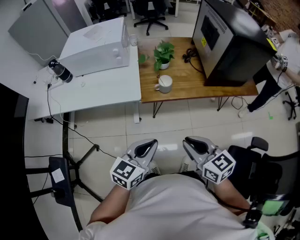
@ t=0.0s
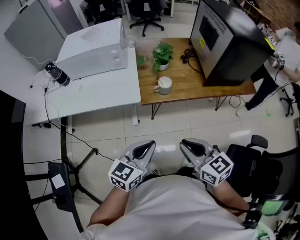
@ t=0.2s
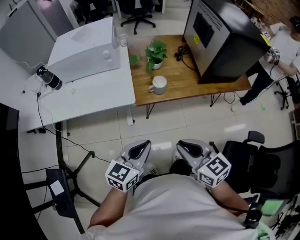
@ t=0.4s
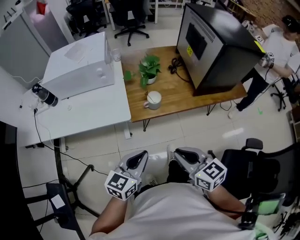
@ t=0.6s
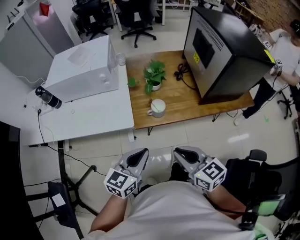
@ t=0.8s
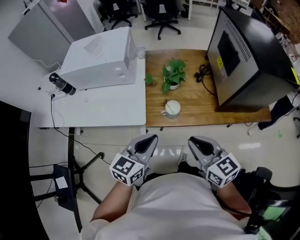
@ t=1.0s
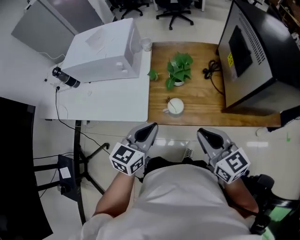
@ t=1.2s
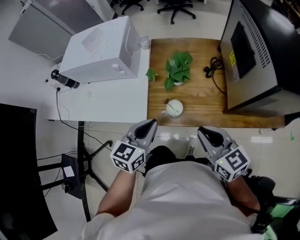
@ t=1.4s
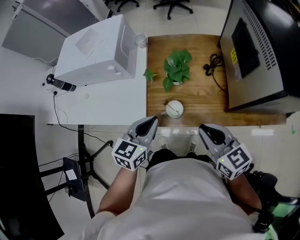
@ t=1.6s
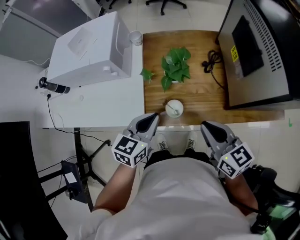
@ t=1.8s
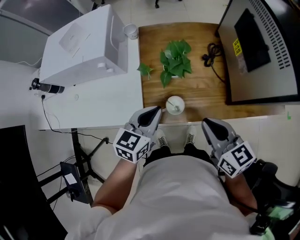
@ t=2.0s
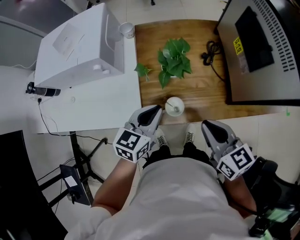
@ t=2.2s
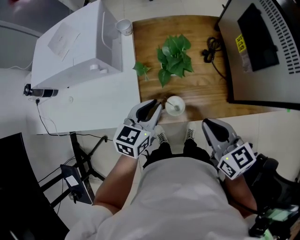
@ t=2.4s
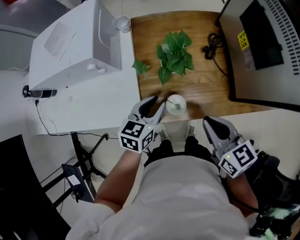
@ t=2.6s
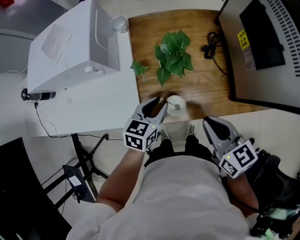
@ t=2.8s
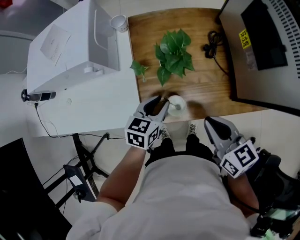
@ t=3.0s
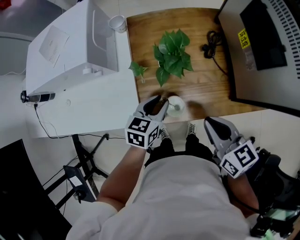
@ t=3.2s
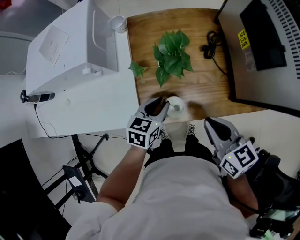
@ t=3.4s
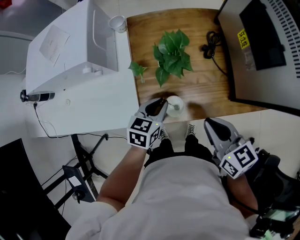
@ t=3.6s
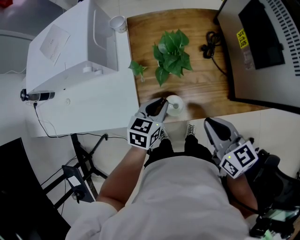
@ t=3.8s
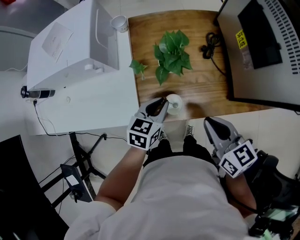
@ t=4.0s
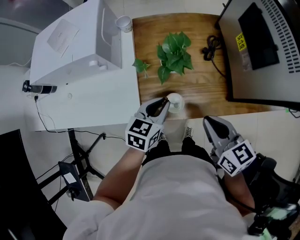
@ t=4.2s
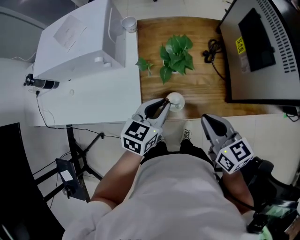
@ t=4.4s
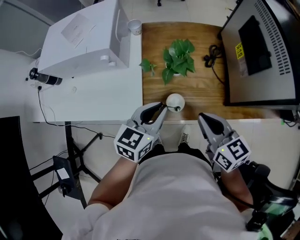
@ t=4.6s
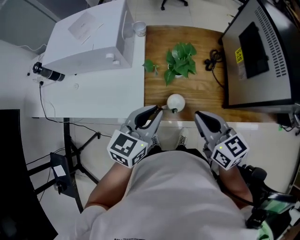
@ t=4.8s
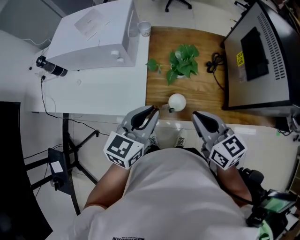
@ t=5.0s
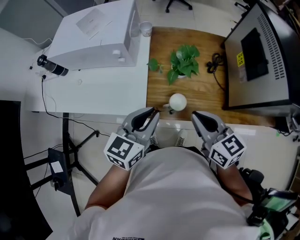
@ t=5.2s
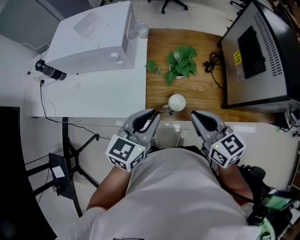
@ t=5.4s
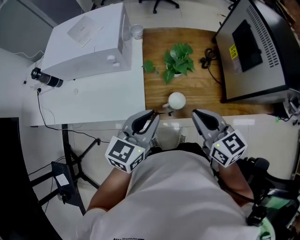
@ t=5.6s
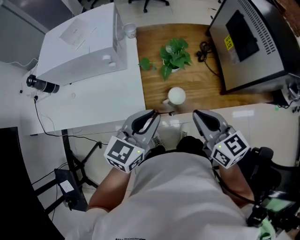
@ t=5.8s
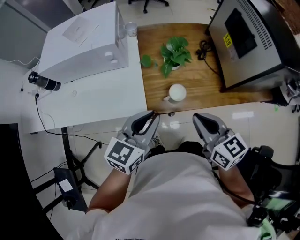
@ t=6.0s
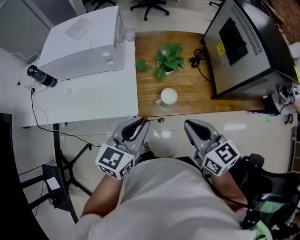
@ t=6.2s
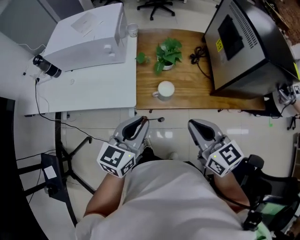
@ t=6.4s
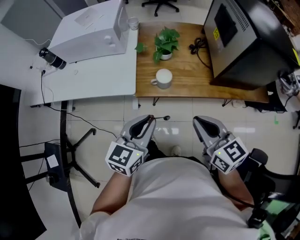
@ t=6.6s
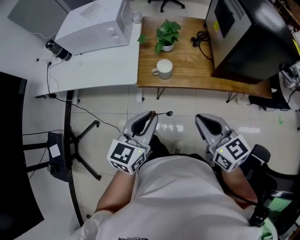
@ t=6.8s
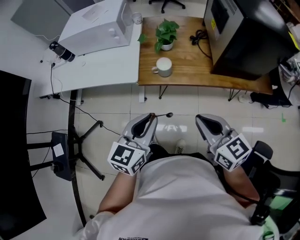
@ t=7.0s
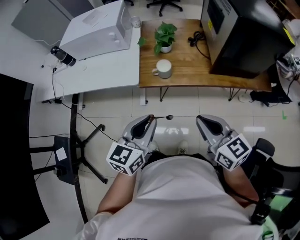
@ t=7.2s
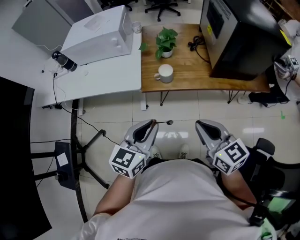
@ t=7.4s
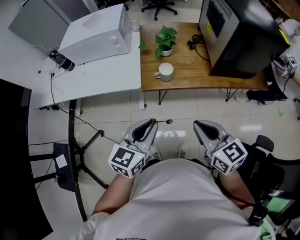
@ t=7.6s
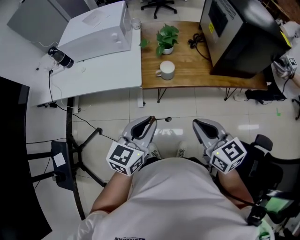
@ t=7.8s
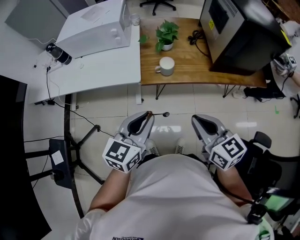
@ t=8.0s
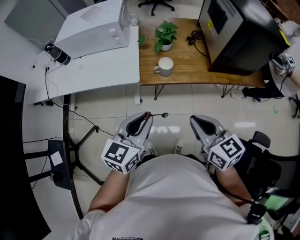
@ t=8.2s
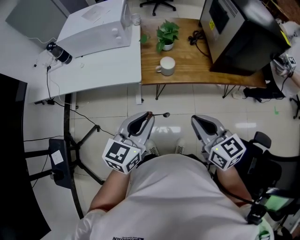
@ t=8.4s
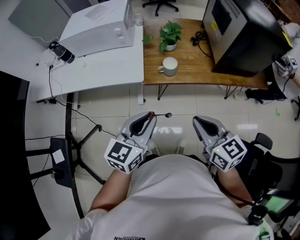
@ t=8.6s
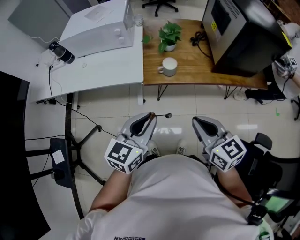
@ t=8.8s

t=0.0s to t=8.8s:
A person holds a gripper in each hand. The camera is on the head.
t=0.0s to t=1.4s: Both grippers travel together forward, about 30 cm.
t=1.4s to t=3.0s: The right gripper moves downward and forward, about 10 cm. The left gripper moves downward and forward, some 20 cm, and opens.
t=3.0s to t=4.4s: The left gripper travels upward by some 10 cm.
t=4.4s to t=5.8s: The left gripper heads upward, backward and to the left, covering about 15 cm, while the right gripper moves to the left and upward, about 10 cm.
t=5.8s to t=7.4s: Both grippers move backward, roughly 25 cm.
t=7.4s to t=8.8s: The right gripper heads to the left, covering about 5 cm.

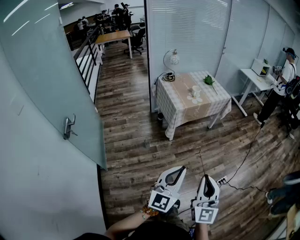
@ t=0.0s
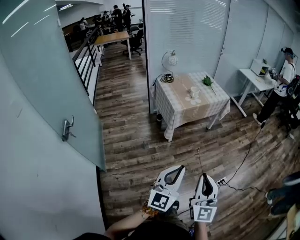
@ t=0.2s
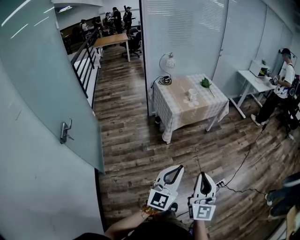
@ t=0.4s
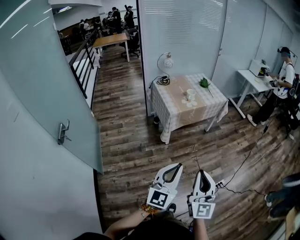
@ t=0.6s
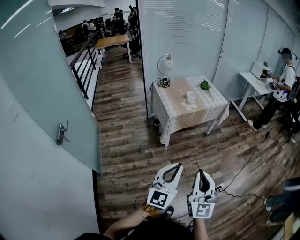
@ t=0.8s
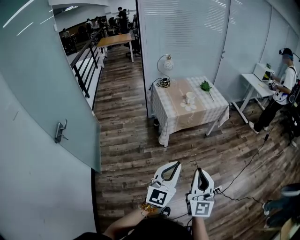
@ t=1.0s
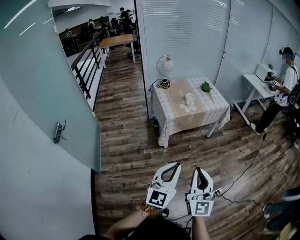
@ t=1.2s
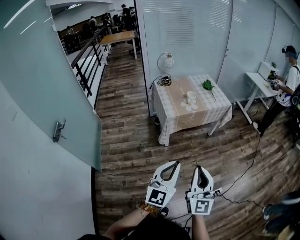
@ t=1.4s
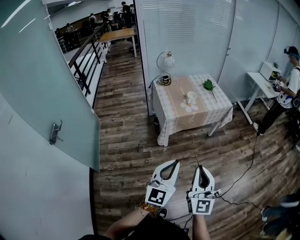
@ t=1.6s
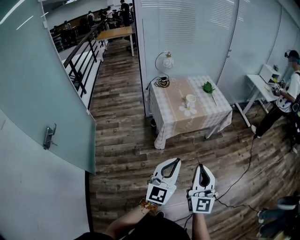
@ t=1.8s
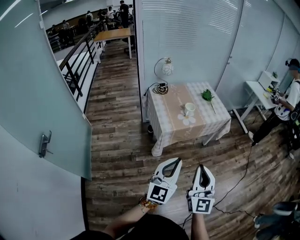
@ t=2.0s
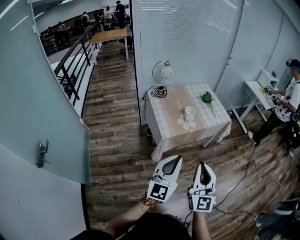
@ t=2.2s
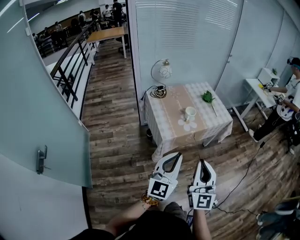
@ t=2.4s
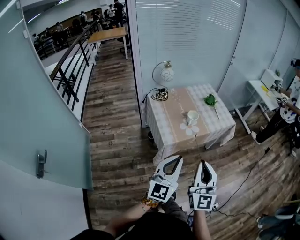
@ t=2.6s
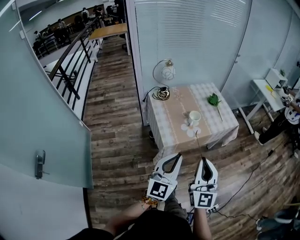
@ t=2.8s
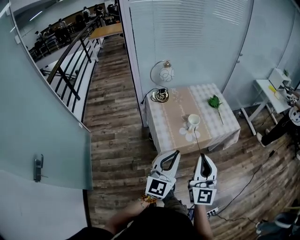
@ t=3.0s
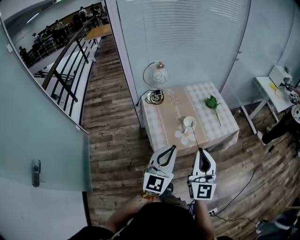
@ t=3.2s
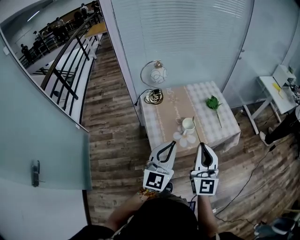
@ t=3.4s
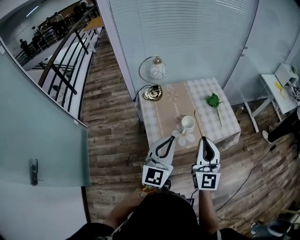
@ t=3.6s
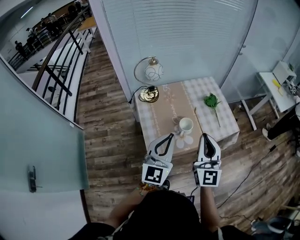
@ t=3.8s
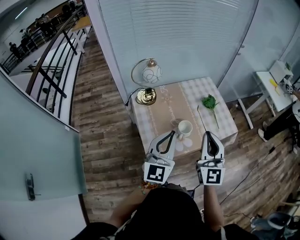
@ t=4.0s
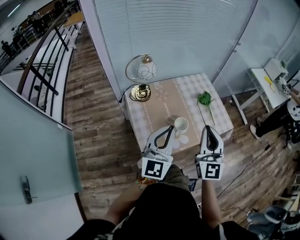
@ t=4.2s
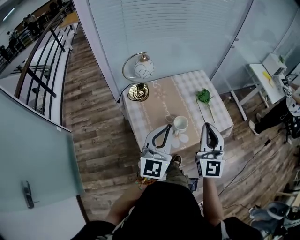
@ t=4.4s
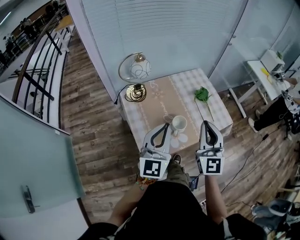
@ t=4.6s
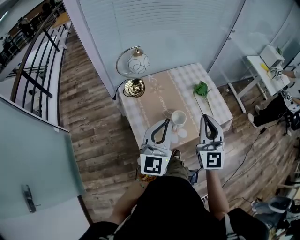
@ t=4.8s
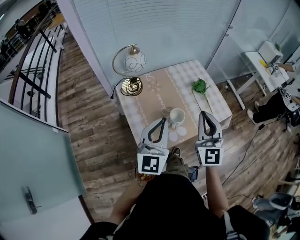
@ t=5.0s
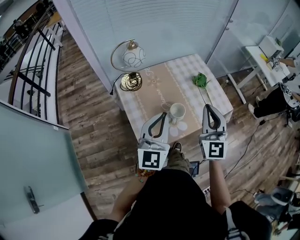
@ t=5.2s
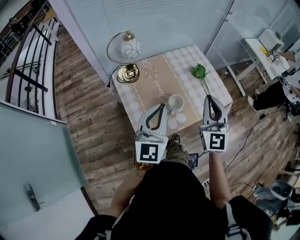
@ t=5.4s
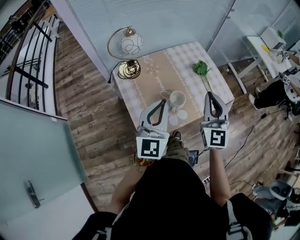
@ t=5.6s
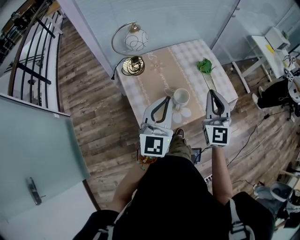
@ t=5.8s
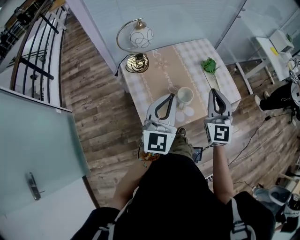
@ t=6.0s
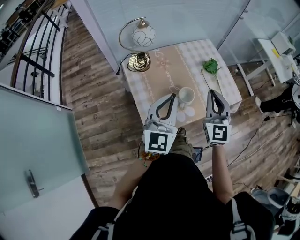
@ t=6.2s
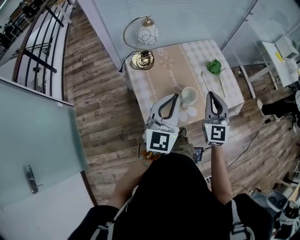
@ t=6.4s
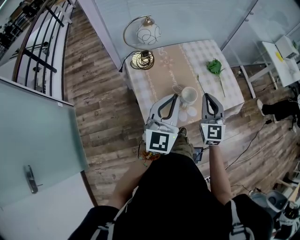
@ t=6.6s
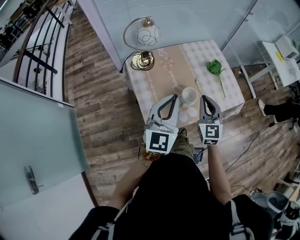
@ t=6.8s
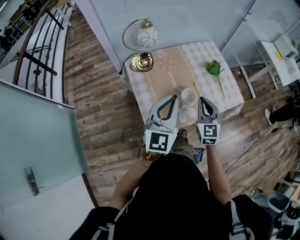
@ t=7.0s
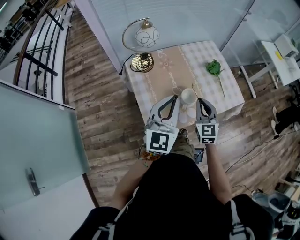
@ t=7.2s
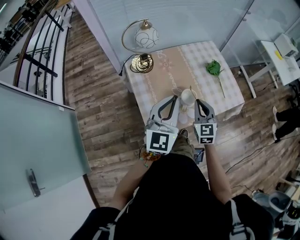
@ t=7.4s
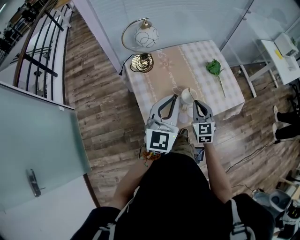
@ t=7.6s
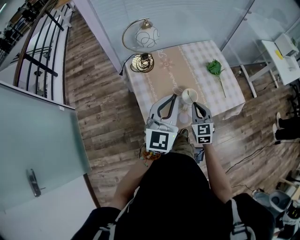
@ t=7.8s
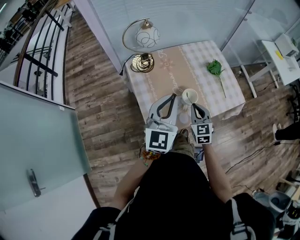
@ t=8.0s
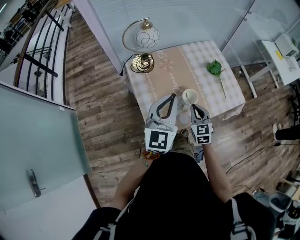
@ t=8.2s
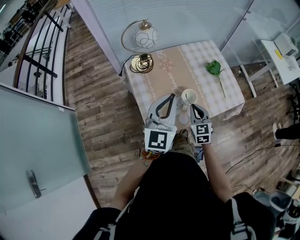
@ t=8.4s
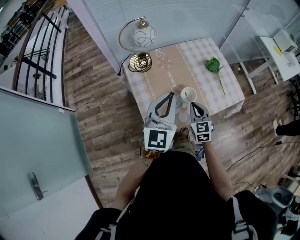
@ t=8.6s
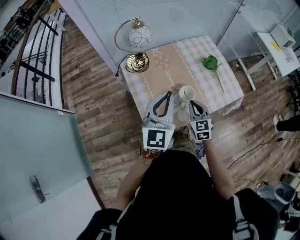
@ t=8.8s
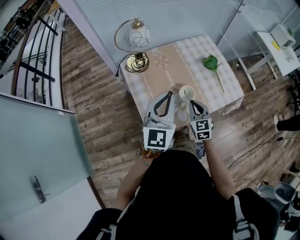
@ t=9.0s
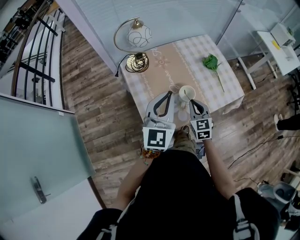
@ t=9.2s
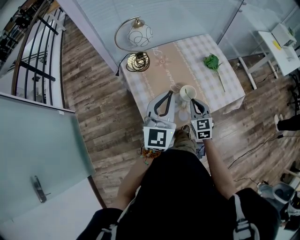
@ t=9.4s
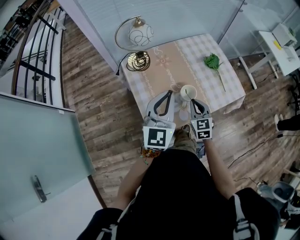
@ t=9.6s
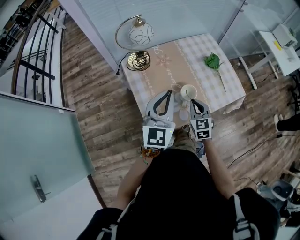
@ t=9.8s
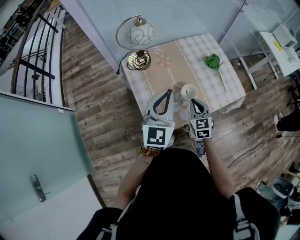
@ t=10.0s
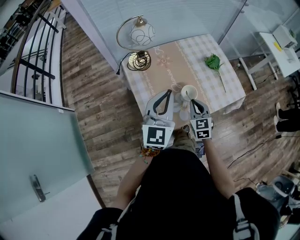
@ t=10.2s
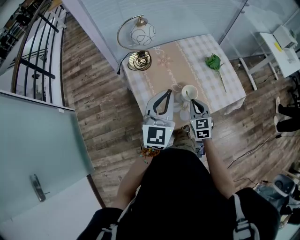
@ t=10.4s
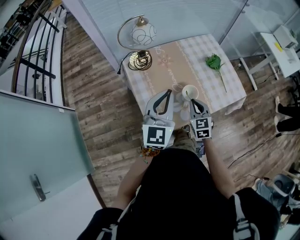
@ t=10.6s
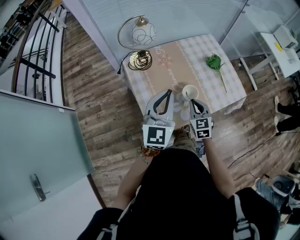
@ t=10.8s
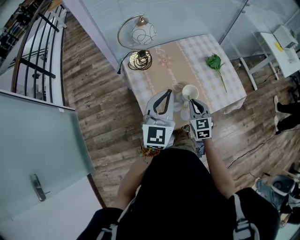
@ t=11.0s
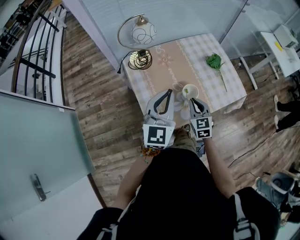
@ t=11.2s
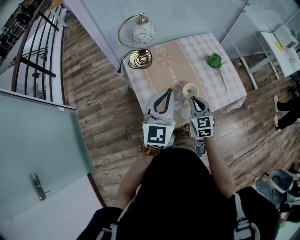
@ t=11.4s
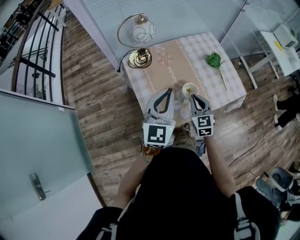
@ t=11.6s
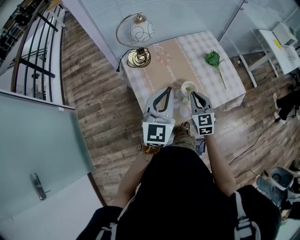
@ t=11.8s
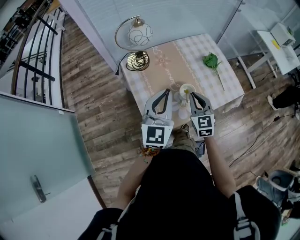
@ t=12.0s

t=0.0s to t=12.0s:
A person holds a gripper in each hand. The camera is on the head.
t=0.0s to t=1.6s: Both grippers travel together forward and to the right, about 25 cm.
t=1.6s to t=3.0s: Both grippers are carried forward, about 40 cm.
t=3.0s to t=4.4s: The grippers both shift forward by some 25 cm.
t=4.4s to t=6.0s: The right gripper moves downward and forward, roughly 10 cm.
t=6.0s to t=7.6s: The right gripper shifts some 15 cm downward.
t=7.6s to t=10.4s: There are only small adjustments of the grippers.
t=10.4s to t=12.0s: The right gripper shifts roughly 5 cm upward.

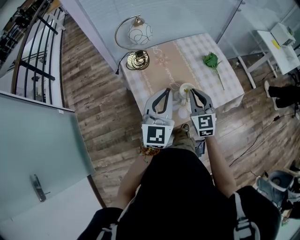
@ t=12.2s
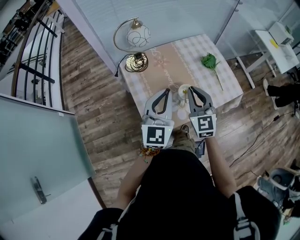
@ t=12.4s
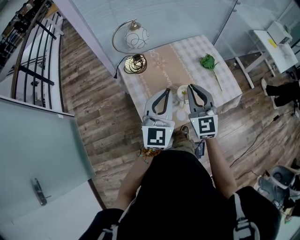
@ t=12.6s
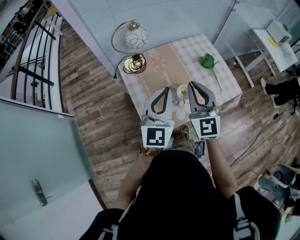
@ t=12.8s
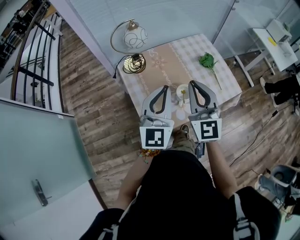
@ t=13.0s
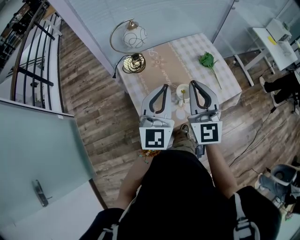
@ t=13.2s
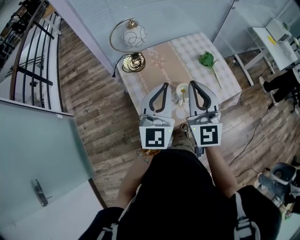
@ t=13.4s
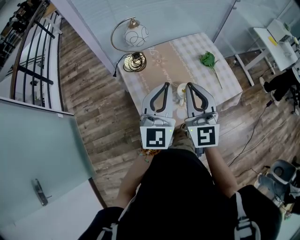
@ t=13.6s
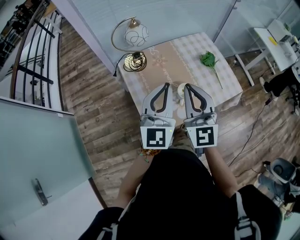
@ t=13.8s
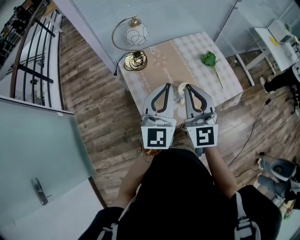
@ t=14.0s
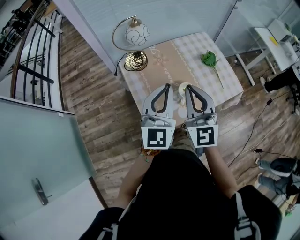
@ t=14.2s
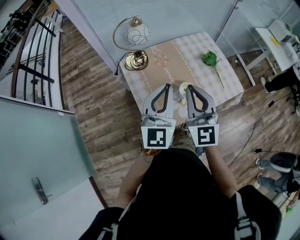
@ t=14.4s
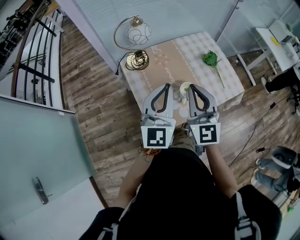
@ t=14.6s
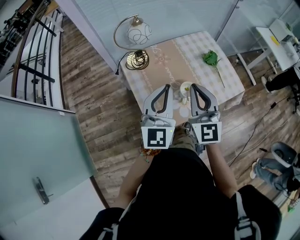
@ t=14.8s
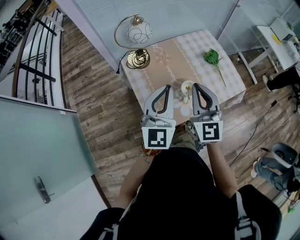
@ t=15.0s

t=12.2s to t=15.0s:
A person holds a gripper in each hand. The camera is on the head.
t=12.2s to t=13.6s: The right gripper heads upward, covering some 15 cm, and rotates approximately 20 degrees. Meanwhile the left gripper travels upward by roughly 5 cm.
t=13.6s to t=15.0s: The grippers move only a little.
